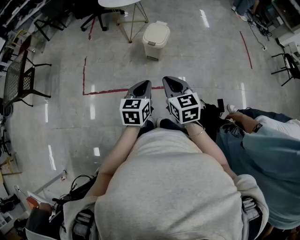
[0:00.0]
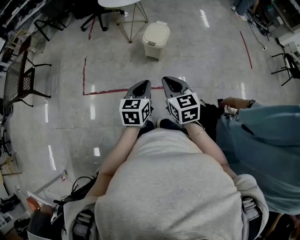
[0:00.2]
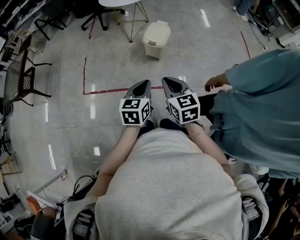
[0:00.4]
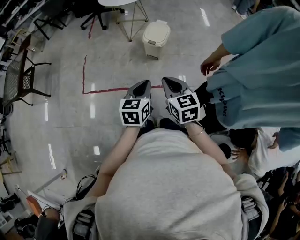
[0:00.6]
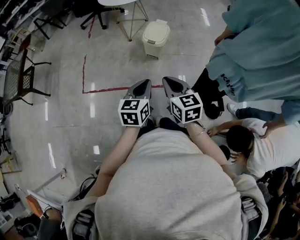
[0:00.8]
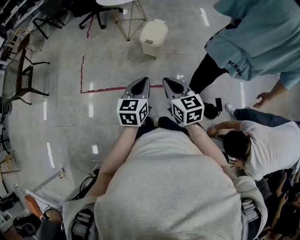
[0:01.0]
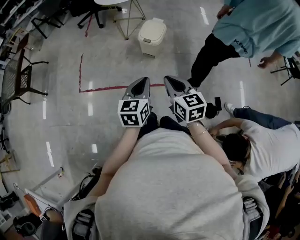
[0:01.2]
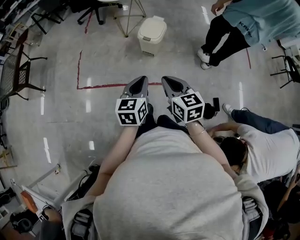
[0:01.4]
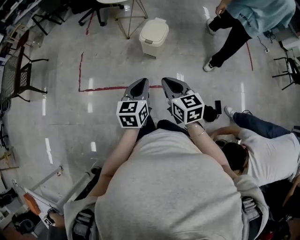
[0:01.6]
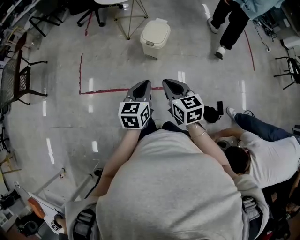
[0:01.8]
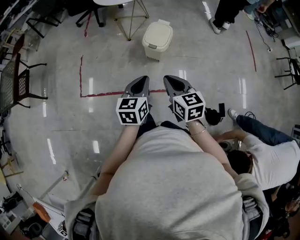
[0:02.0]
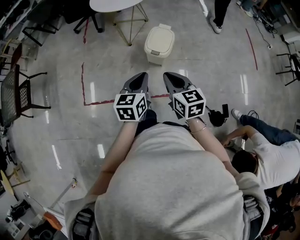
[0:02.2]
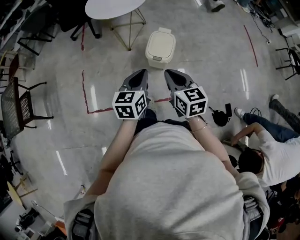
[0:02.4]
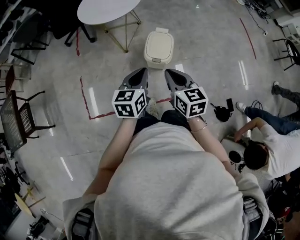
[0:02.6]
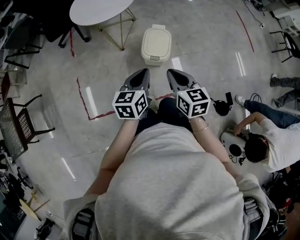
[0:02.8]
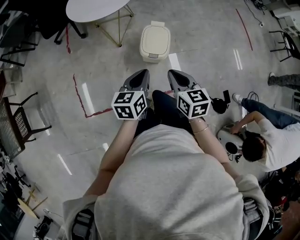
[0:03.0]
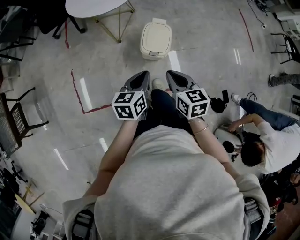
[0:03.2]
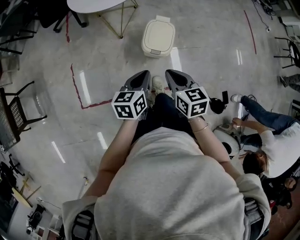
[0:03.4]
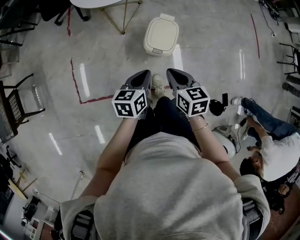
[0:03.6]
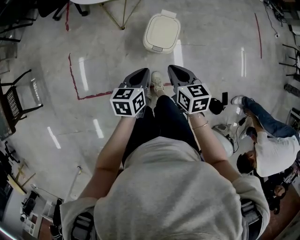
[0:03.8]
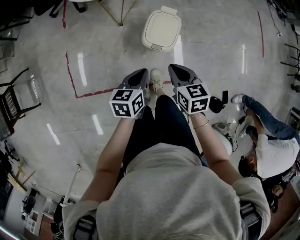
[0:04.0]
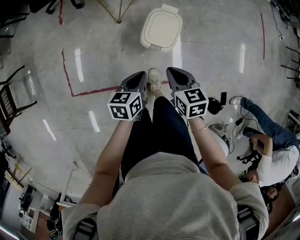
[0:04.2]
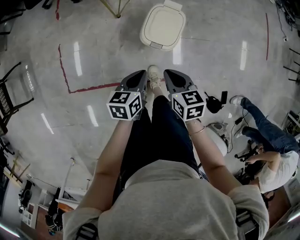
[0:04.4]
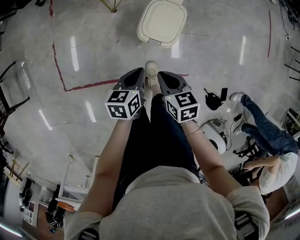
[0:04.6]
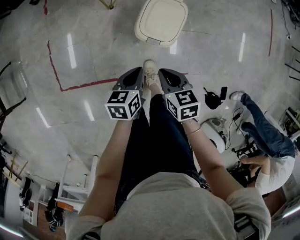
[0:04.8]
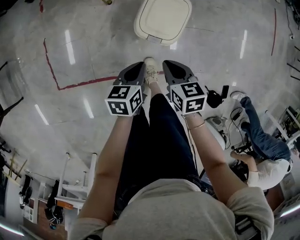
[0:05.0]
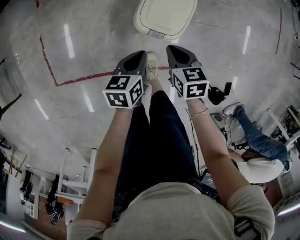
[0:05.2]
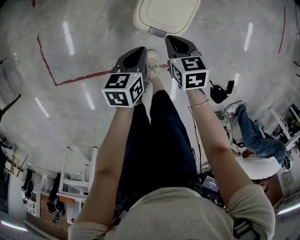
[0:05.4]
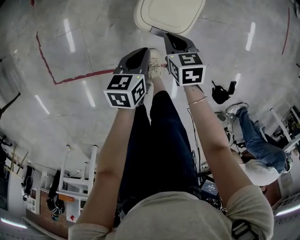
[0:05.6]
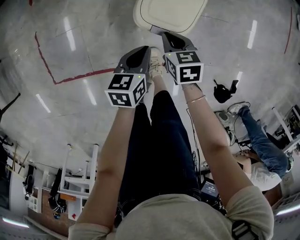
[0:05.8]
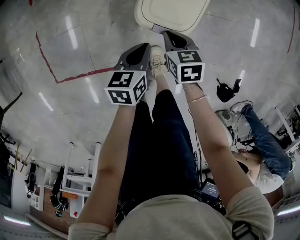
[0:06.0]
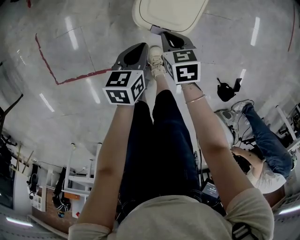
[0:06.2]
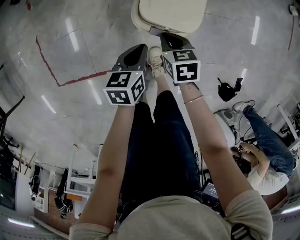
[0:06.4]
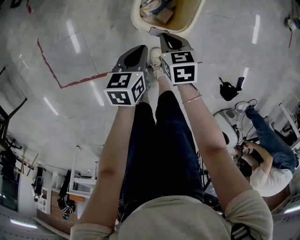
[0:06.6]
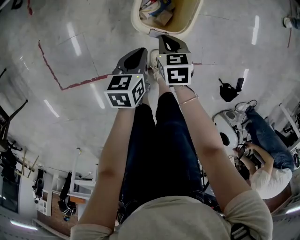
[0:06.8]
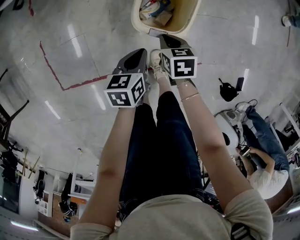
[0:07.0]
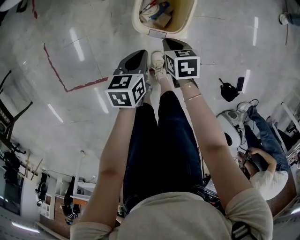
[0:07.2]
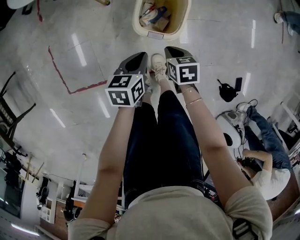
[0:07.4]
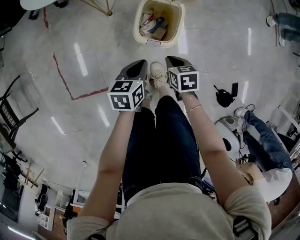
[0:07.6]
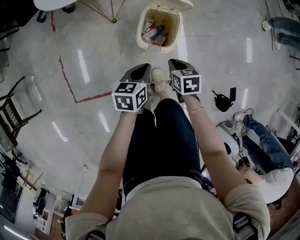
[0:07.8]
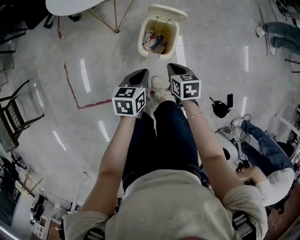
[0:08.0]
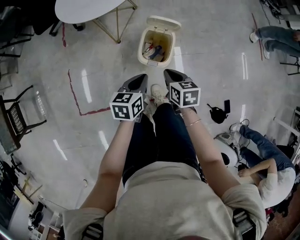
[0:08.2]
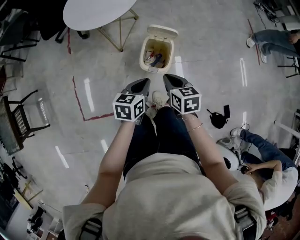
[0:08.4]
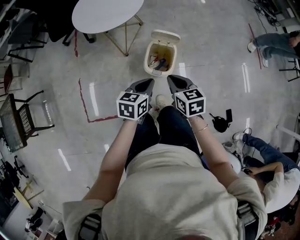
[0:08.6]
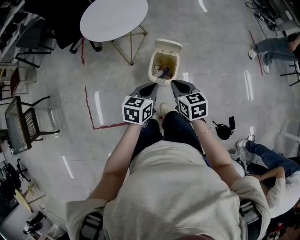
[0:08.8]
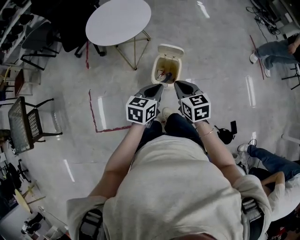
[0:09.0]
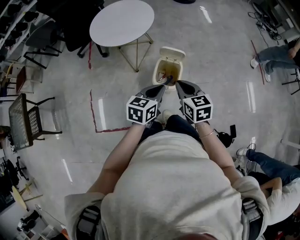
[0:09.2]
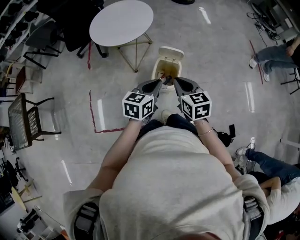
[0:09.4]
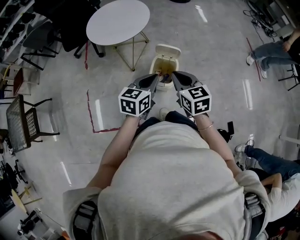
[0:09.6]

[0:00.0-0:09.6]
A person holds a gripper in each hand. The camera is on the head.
0:00.0 to 0:01.6: The grippers stay close to where they were, moving slightly.
0:01.6 to 0:03.2: Both grippers move forward, roughly 30 cm. The left gripper turns by roughly 20 degrees.
0:03.2 to 0:04.8: The two grippers go some 25 cm downward. The right gripper changes its angle by approximately 20 degrees.
0:04.8 to 0:06.4: The left gripper moves downward, roughly 15 cm. Meanwhile the right gripper moves downward and forward, some 20 cm.
0:06.4 to 0:08.0: The grippers both shift upward by about 20 cm.
0:08.0 to 0:09.6: The two grippers go about 25 cm upward. The left gripper changes its angle by approximately 20 degrees; the right gripper rotates approximately 30 degrees.

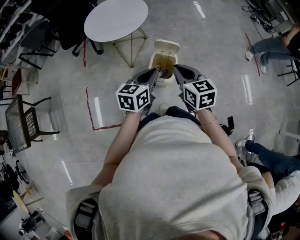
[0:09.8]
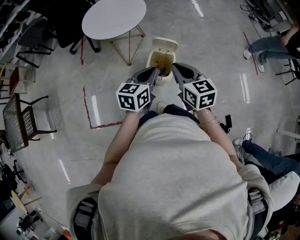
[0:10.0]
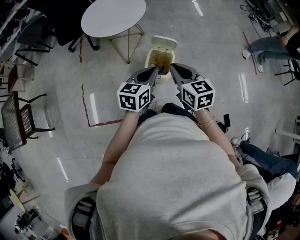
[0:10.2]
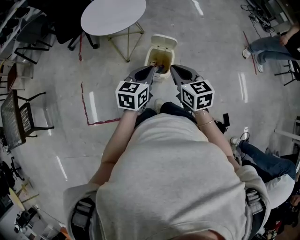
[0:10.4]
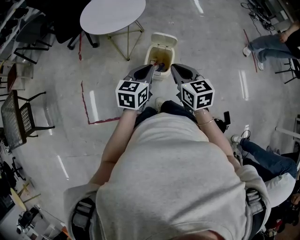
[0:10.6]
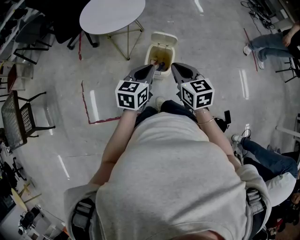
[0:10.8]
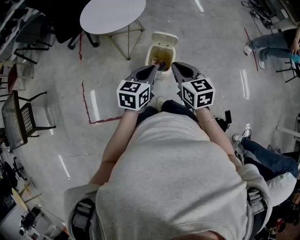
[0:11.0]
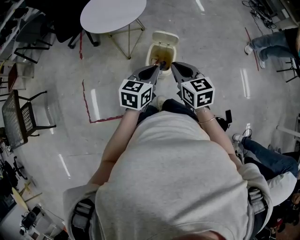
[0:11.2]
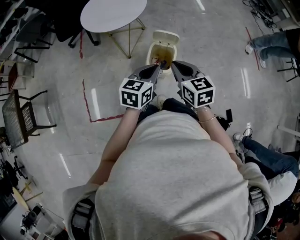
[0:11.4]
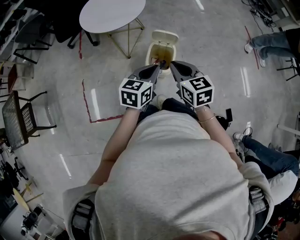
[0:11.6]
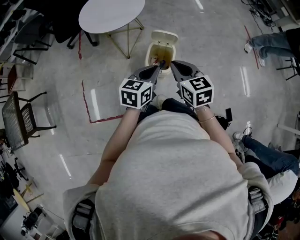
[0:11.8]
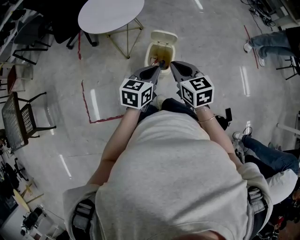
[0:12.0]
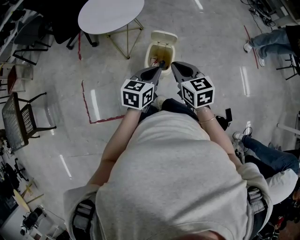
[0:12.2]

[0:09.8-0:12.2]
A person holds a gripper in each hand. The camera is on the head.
0:09.8 to 0:12.2: There are only small adjustments of the grippers.

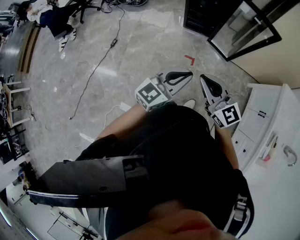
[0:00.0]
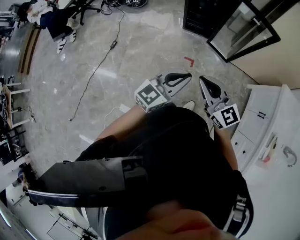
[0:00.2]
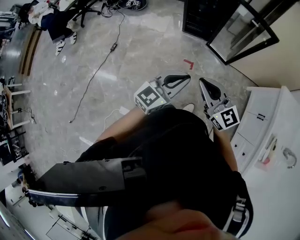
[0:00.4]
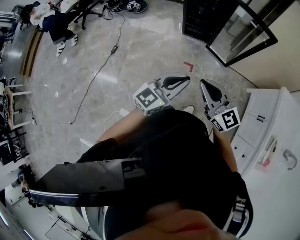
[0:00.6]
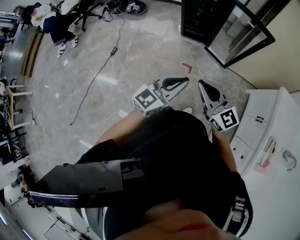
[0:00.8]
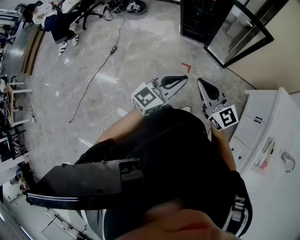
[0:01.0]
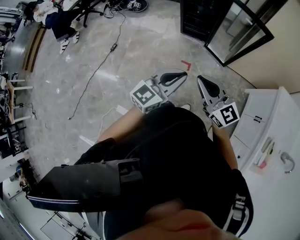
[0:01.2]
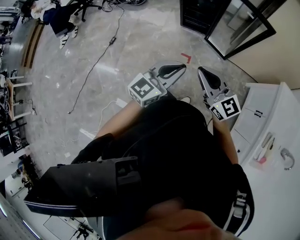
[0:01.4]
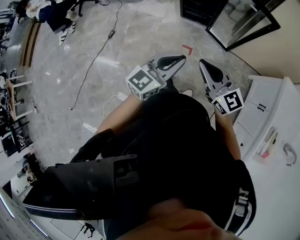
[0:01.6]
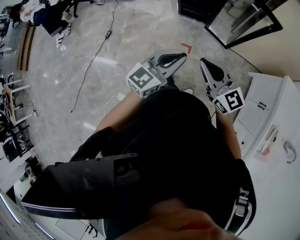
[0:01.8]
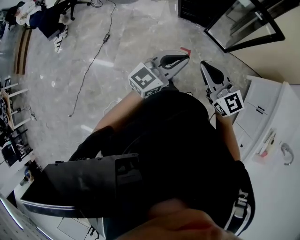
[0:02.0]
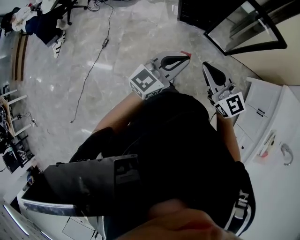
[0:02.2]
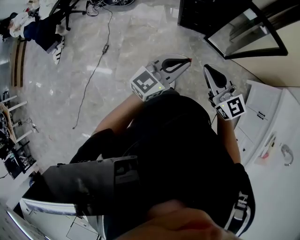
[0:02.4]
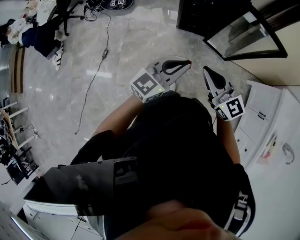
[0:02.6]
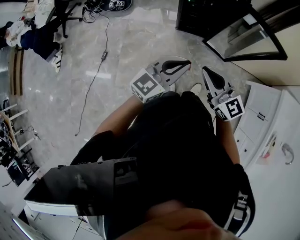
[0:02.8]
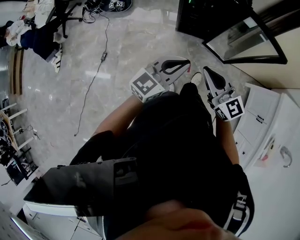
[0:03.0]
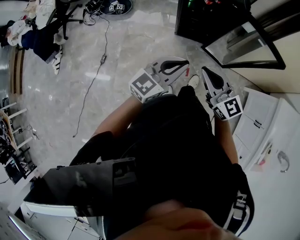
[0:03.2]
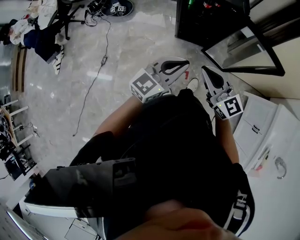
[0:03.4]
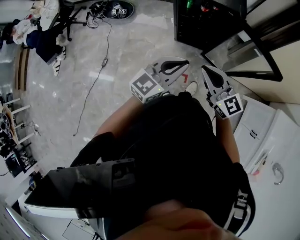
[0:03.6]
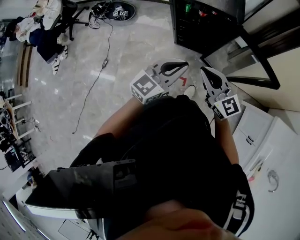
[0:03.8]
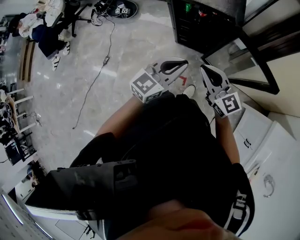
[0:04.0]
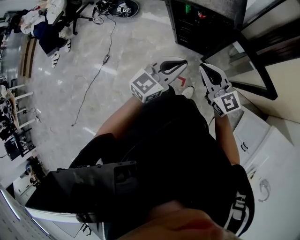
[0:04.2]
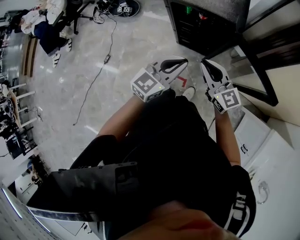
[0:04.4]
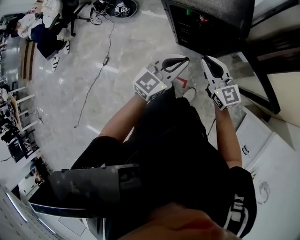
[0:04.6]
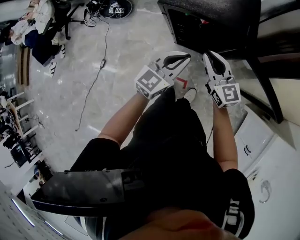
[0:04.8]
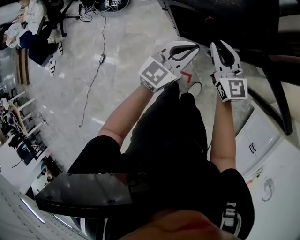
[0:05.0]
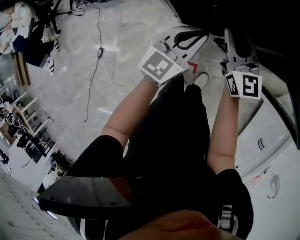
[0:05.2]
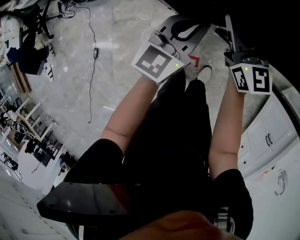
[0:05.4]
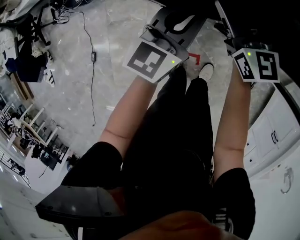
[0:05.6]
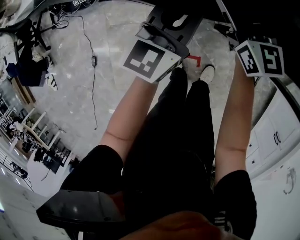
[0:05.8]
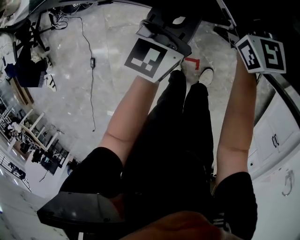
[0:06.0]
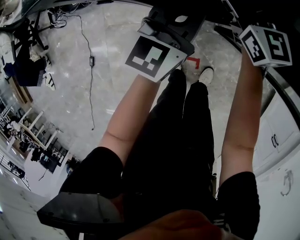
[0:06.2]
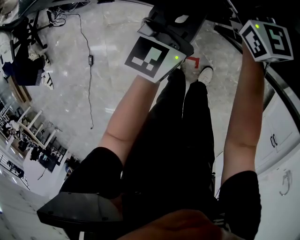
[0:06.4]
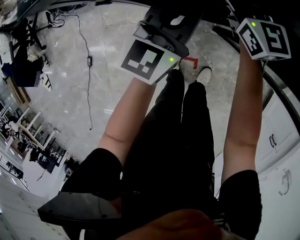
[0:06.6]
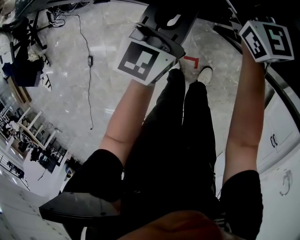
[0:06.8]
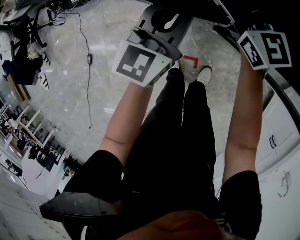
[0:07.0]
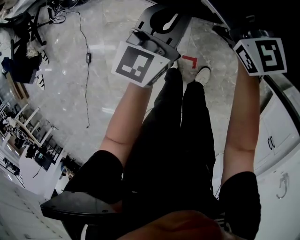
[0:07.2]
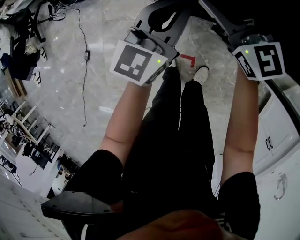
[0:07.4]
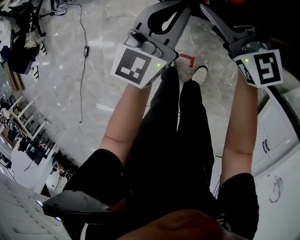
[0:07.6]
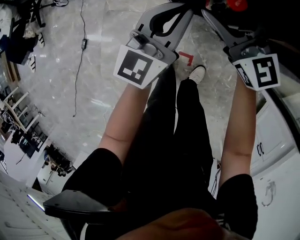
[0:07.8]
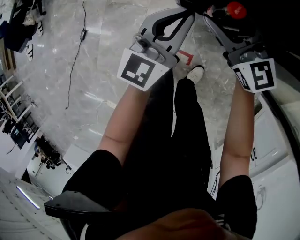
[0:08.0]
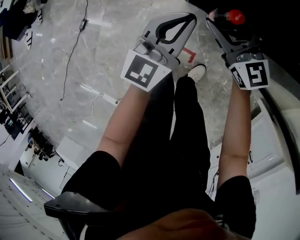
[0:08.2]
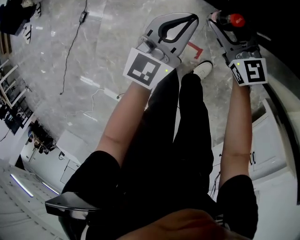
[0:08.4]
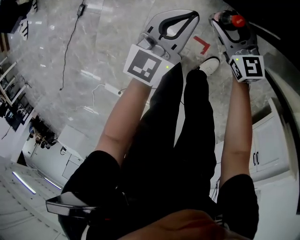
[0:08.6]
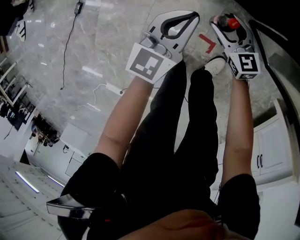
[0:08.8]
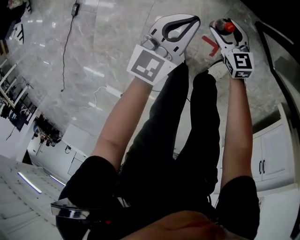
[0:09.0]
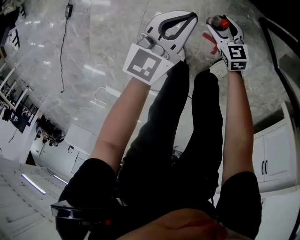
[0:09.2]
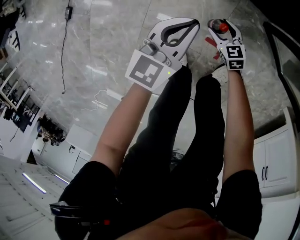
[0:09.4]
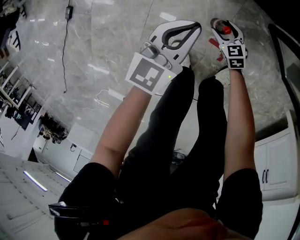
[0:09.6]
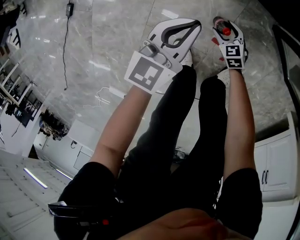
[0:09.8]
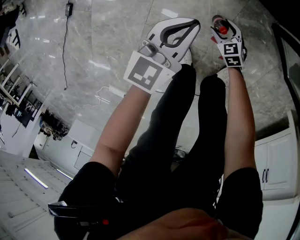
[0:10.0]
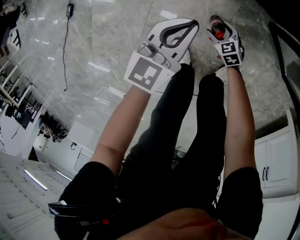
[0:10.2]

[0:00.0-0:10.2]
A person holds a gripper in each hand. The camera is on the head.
0:00.0 to 0:01.4: Both grippers move to the right, approximately 5 cm.
0:01.4 to 0:03.0: The grippers both shift forward and to the left by about 30 cm.
0:03.0 to 0:04.4: The grippers both shift forward and to the right by approximately 25 cm.
0:04.4 to 0:05.8: Both grippers travel together forward and downward, about 35 cm. The right gripper turns by roughly 30 degrees, and opens its fingers.
0:05.8 to 0:07.2: The grippers make only small movements.
0:07.2 to 0:08.8: The left gripper goes roughly 35 cm downward, to the left and backward; the right gripper is displaced downward and backward by about 40 cm, and swivels some 30 degrees.
0:08.8 to 0:10.2: The right gripper heads downward, covering some 30 cm, and swivels approximately 30 degrees, while the left gripper shifts roughly 15 cm downward.

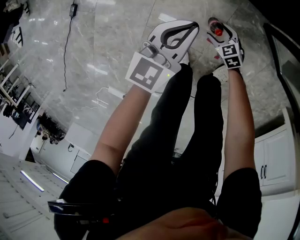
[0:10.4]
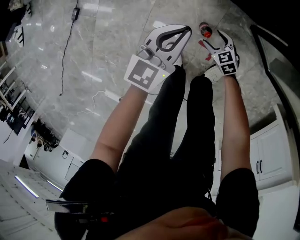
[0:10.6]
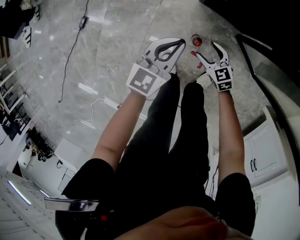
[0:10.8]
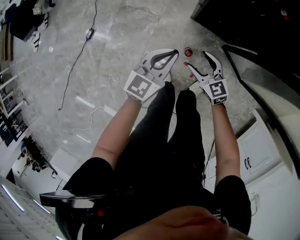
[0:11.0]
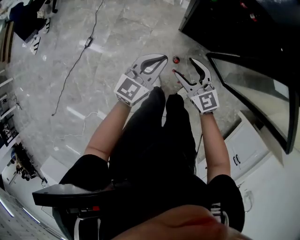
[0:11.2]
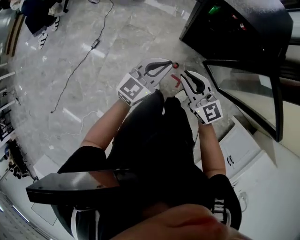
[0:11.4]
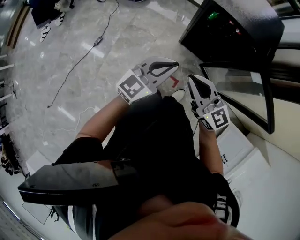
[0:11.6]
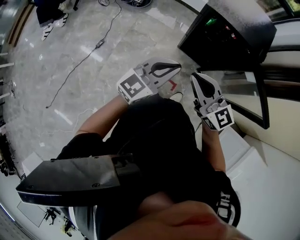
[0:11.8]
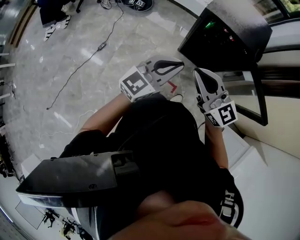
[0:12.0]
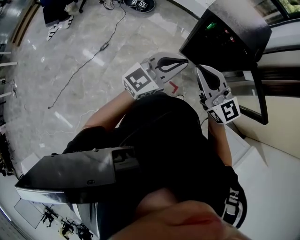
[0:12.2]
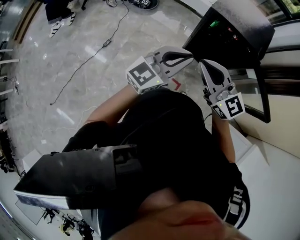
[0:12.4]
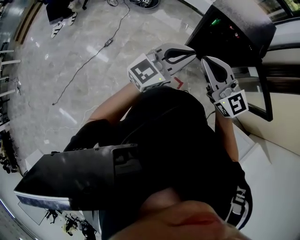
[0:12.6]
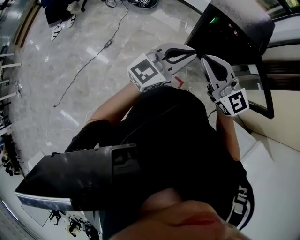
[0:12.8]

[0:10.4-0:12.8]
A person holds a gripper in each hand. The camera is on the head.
0:10.4 to 0:11.6: Both grippers travel together upward, roughly 70 cm. The right gripper tips its fingers upward by approximately 50 degrees, and closes up.
0:11.6 to 0:12.8: The two grippers go roughly 15 cm upward.
